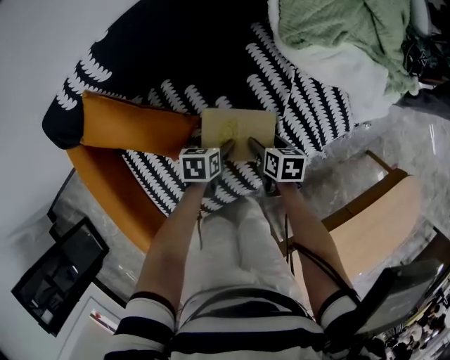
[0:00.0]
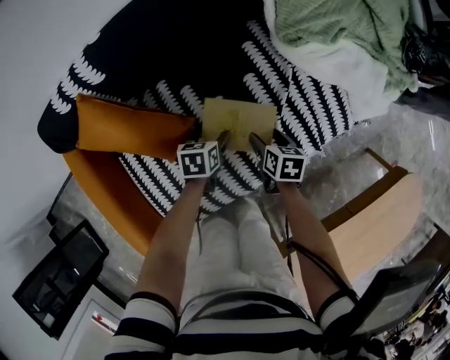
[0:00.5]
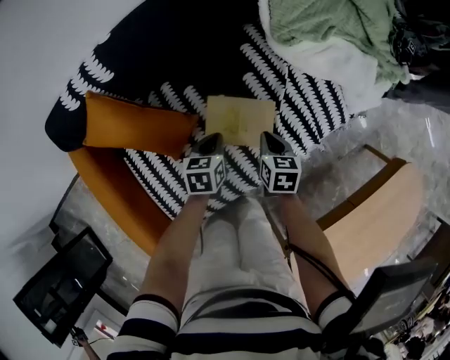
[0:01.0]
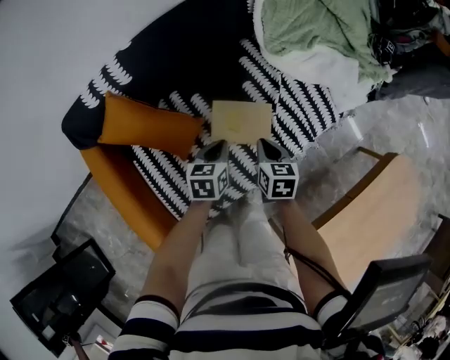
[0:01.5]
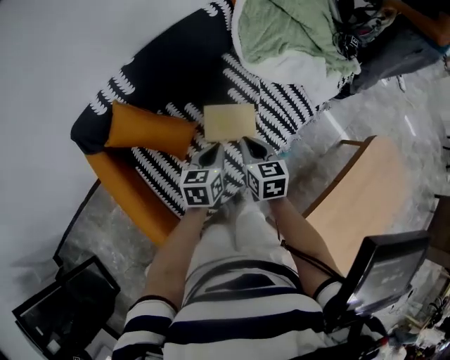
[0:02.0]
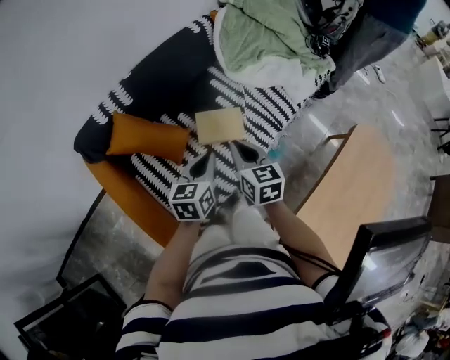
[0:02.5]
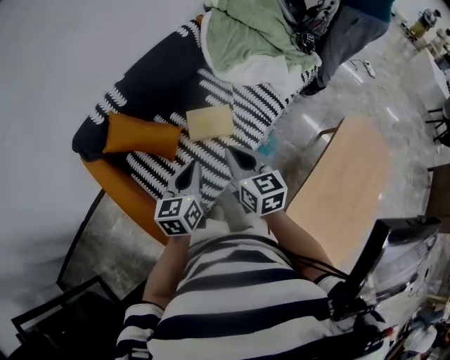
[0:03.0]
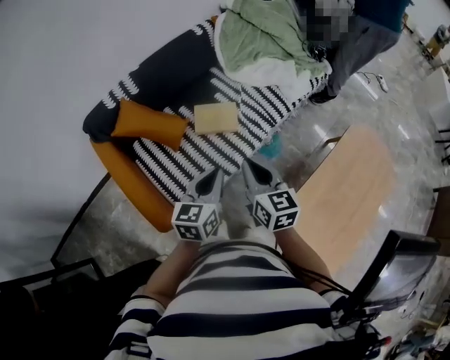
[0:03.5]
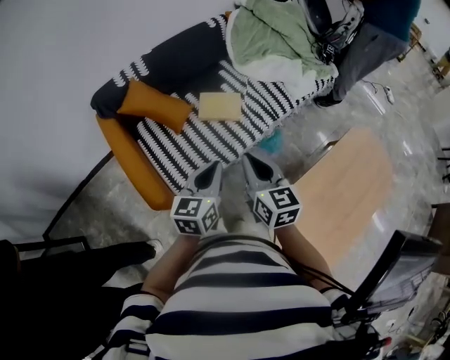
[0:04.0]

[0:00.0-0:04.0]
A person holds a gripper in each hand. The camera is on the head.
0:00.0 to 0:02.0: Both grippers travel together upward, about 20 cm. The right gripper turns by about 30 degrees, and closes its fingers; the left gripper turns by roughly 30 degrees, and closes up.
0:02.0 to 0:04.0: Both grippers travel together backward and upward, about 30 cm.

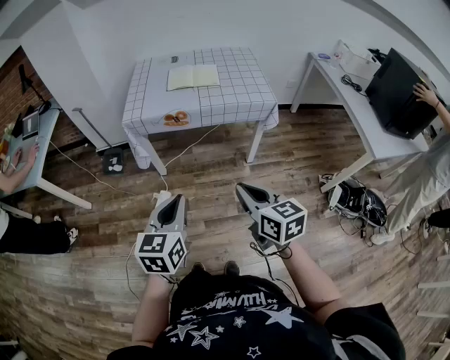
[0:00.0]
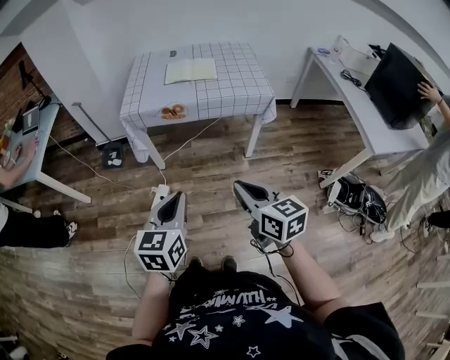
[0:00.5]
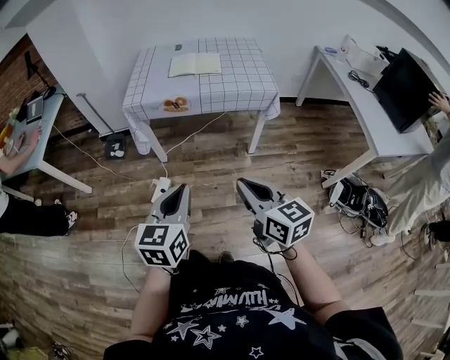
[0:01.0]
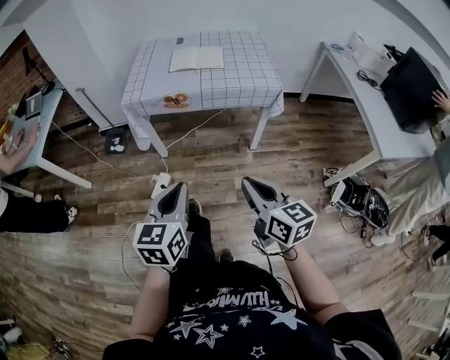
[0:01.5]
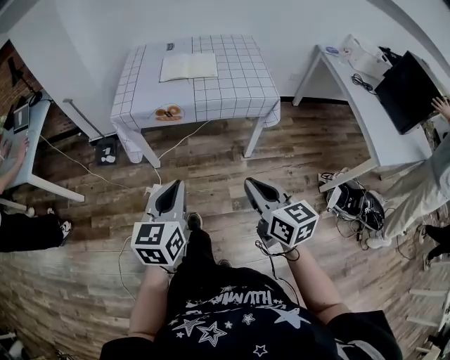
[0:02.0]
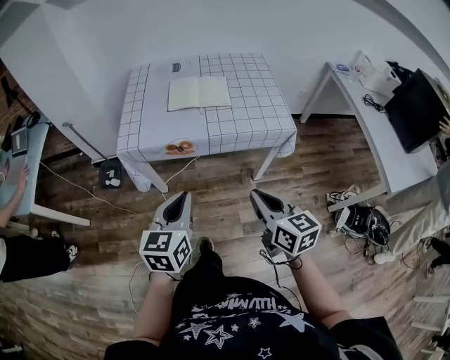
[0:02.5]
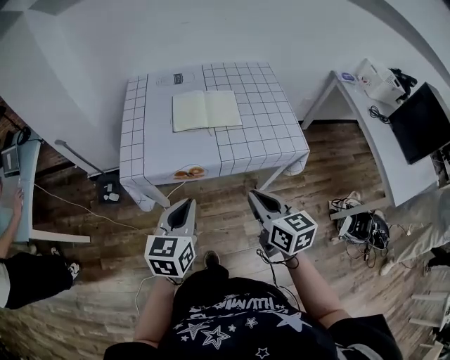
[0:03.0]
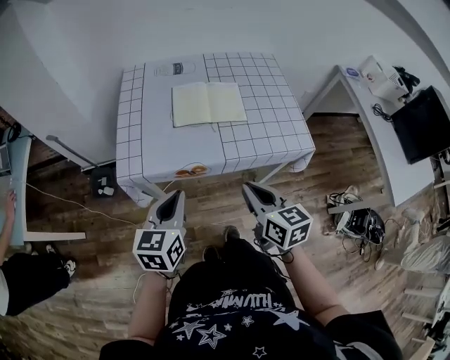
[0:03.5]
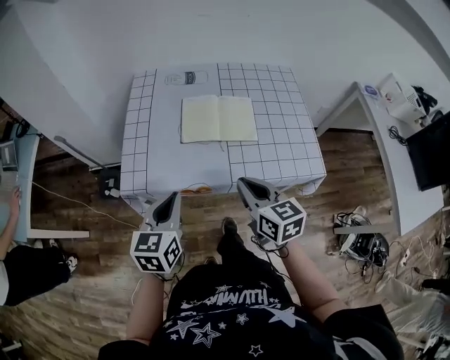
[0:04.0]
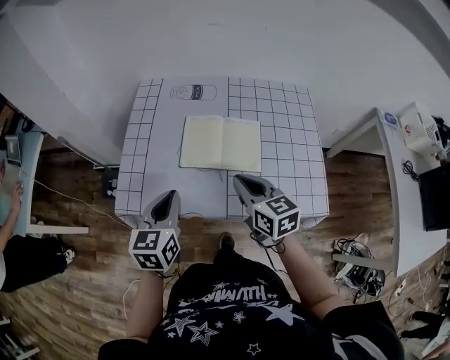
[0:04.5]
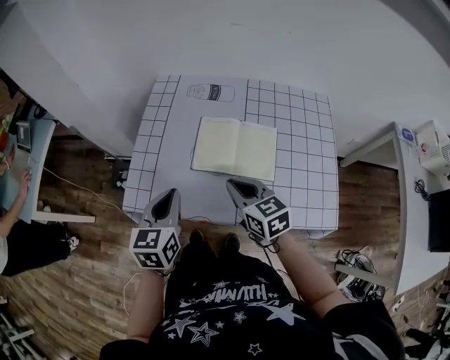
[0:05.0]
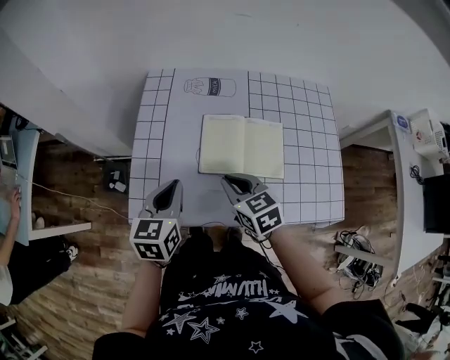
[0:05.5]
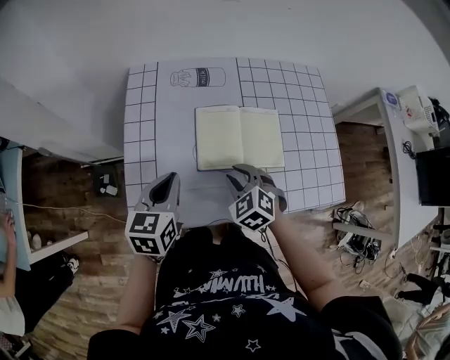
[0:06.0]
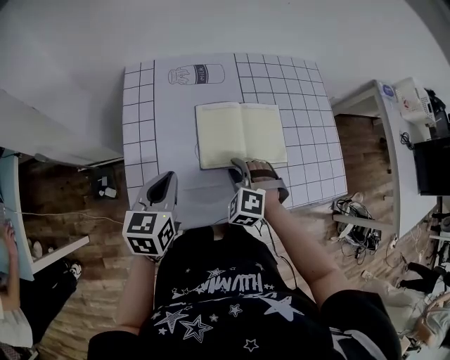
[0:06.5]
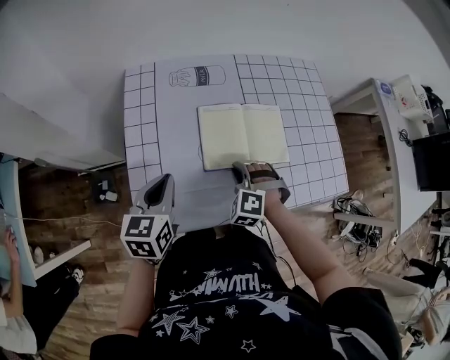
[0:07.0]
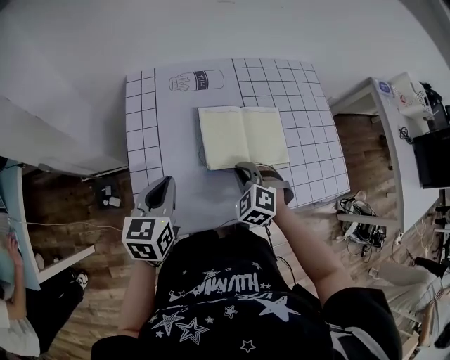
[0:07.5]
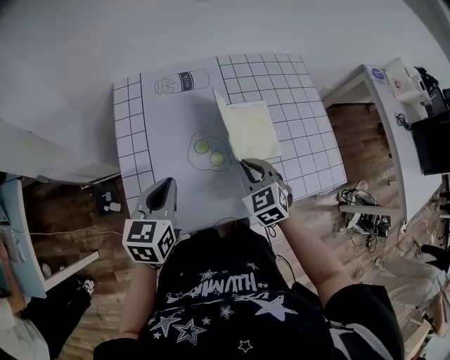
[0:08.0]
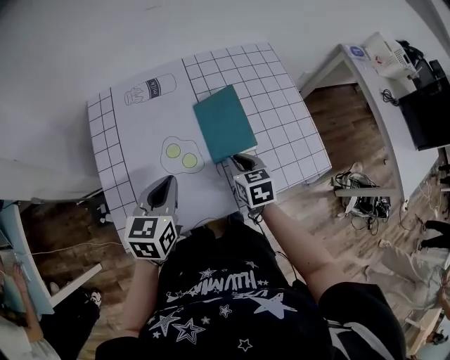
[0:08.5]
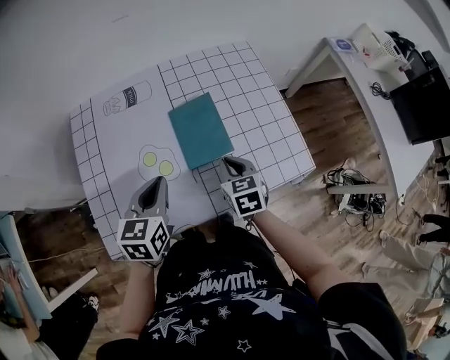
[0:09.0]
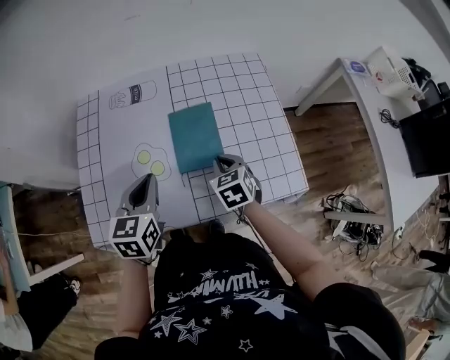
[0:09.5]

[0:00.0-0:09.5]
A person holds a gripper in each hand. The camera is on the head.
0:00.0 to 0:02.0: The left gripper travels forward by roughly 10 cm; the right gripper goes some 10 cm to the right and forward.
0:02.0 to 0:04.0: Both grippers travel together forward, roughly 40 cm.
0:04.0 to 0:05.5: The two grippers go about 20 cm forward. The right gripper changes its angle by roughly 20 degrees.
0:05.5 to 0:07.5: The left gripper moves roughly 5 cm; the right gripper heads downward, covering approximately 10 cm, rolls counterclockwise, seen from behind, by about 40 degrees, and opens, then closes once more.
0:07.5 to 0:09.5: The grippers both shift to the right by about 20 cm. The right gripper rolls clockwise, seen from behind, by approximately 40 degrees.

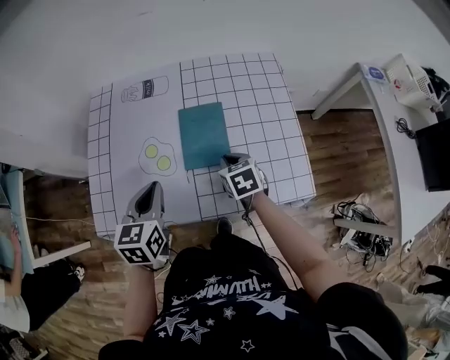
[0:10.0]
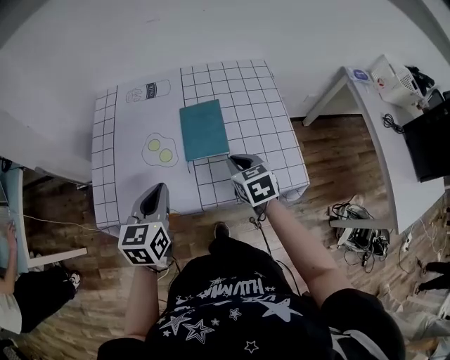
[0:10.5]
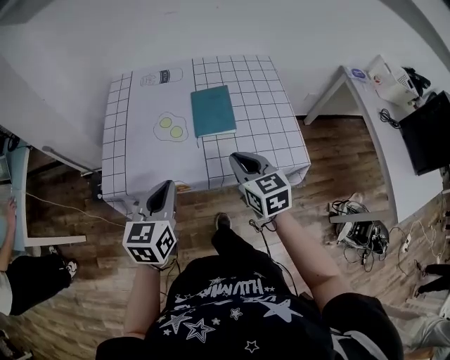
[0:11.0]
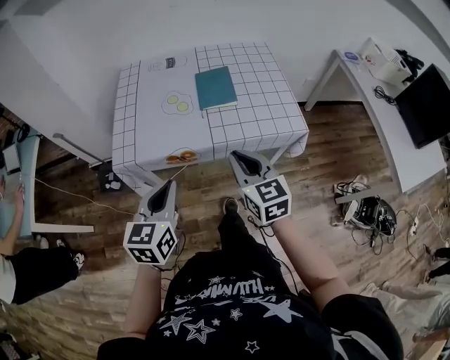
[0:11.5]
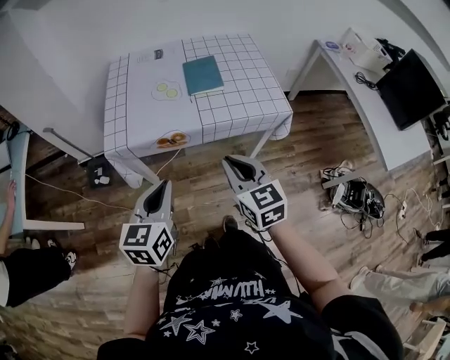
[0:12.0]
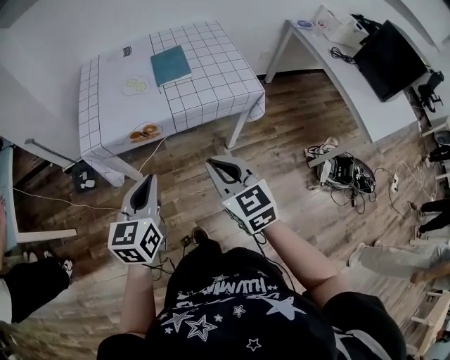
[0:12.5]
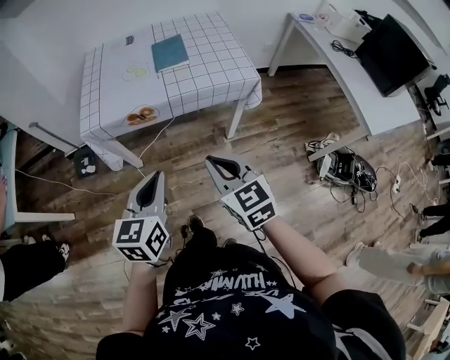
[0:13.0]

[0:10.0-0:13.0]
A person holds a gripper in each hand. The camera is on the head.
0:10.0 to 0:11.5: The right gripper travels backward and upward by some 35 cm, and tilts its fingers roughly 30 degrees upward; the left gripper travels backward by about 25 cm.
0:11.5 to 0:13.0: The right gripper shifts approximately 20 cm backward; the left gripper heads backward and to the right, covering approximately 20 cm.

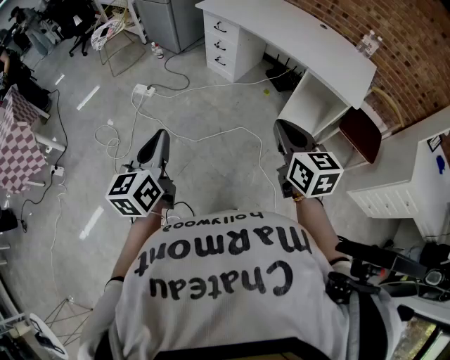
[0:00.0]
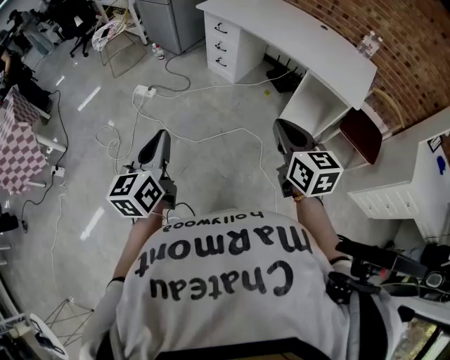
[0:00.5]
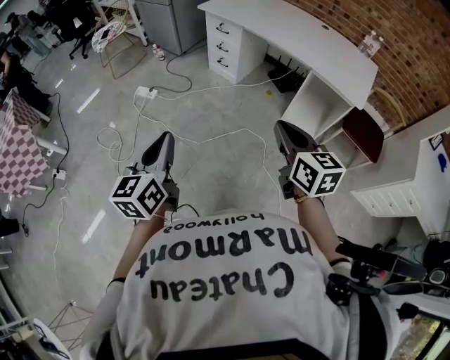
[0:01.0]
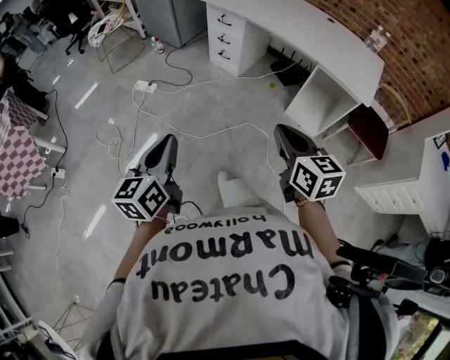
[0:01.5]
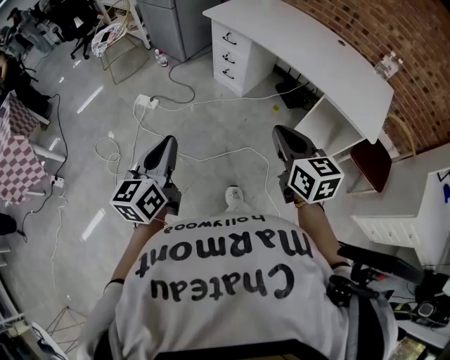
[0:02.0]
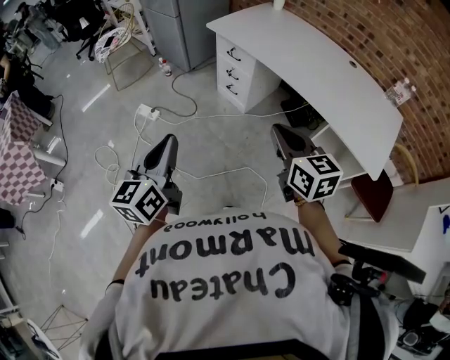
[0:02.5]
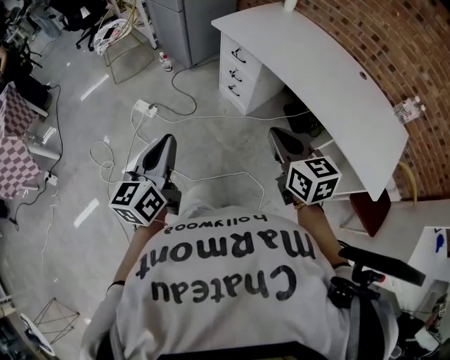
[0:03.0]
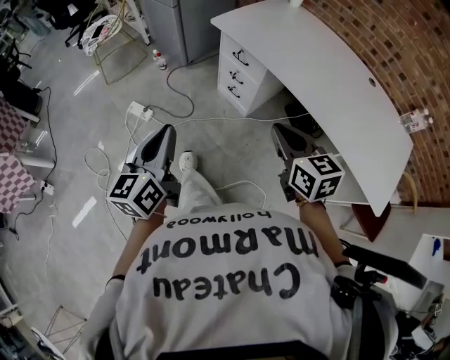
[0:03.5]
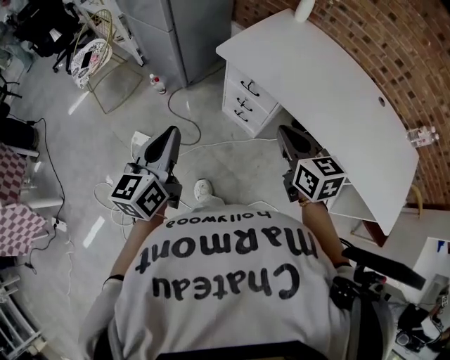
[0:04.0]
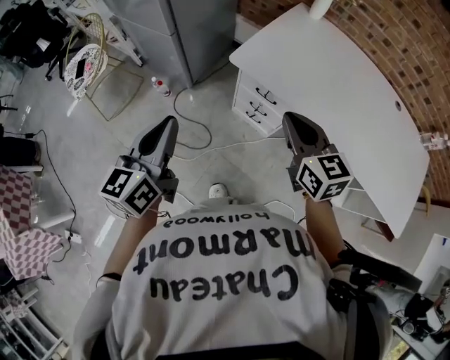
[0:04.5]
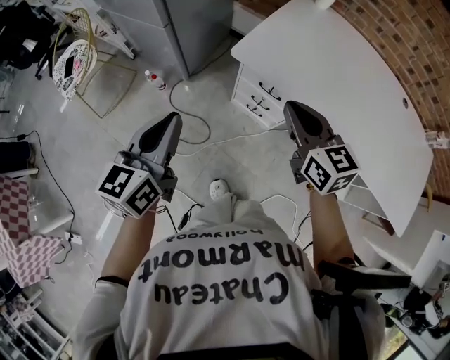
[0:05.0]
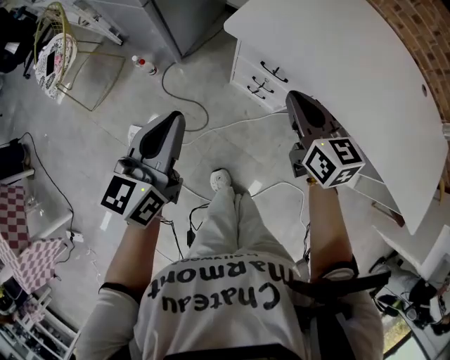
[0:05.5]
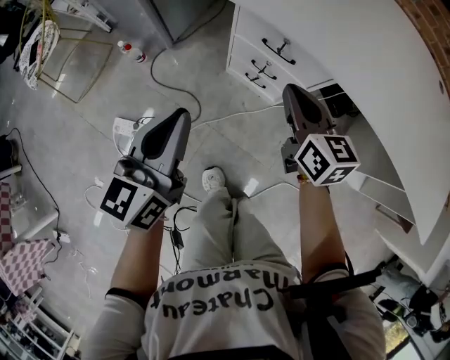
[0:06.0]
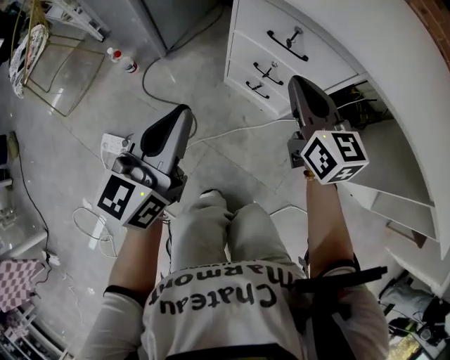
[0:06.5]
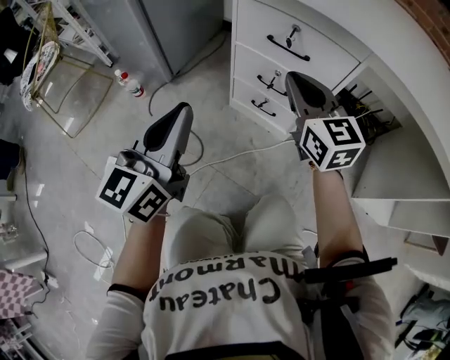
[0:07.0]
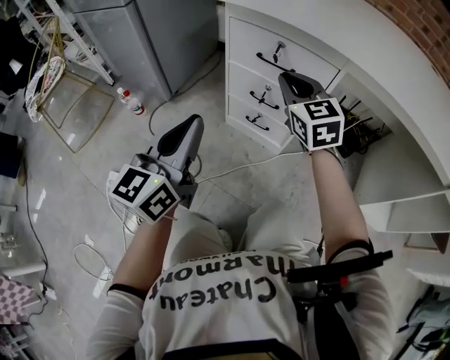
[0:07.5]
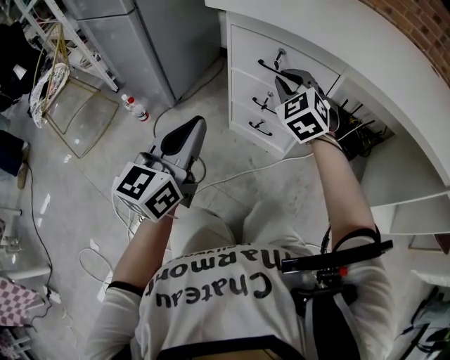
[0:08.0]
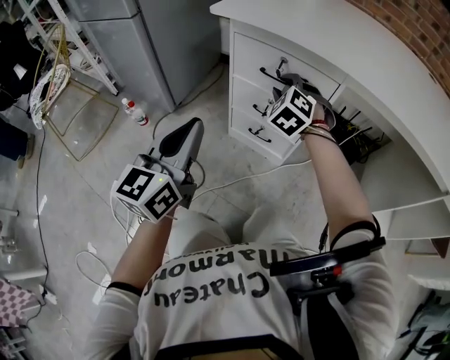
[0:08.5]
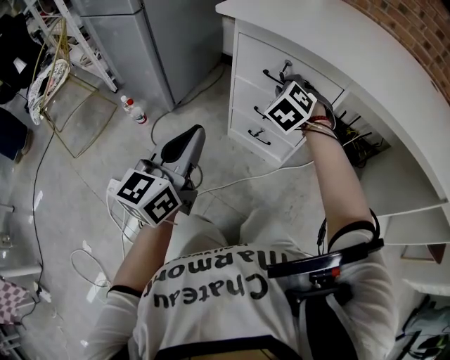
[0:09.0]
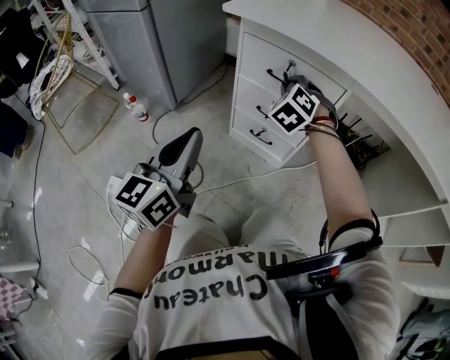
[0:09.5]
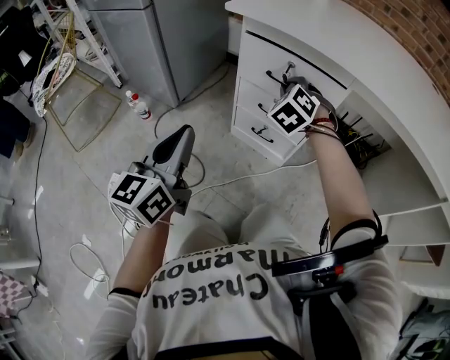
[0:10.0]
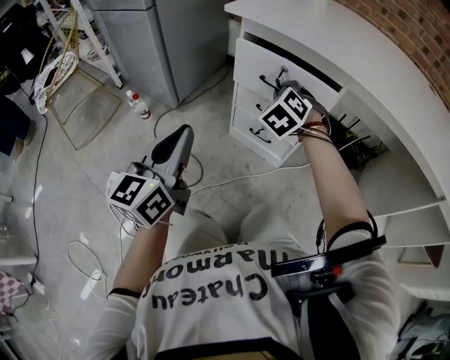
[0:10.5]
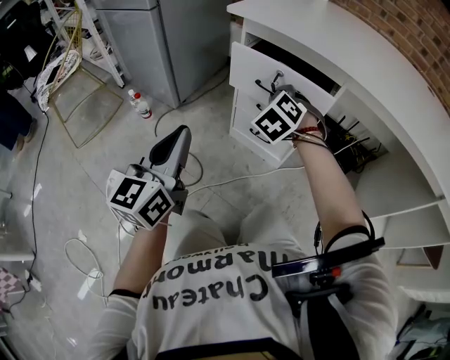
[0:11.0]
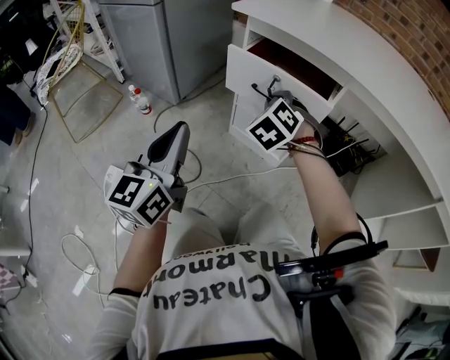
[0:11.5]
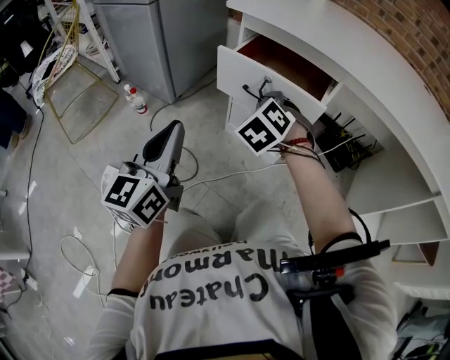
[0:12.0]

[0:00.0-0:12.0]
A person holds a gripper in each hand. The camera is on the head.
0:00.0 to 0:02.0: The two grippers go approximately 15 cm forward.
0:02.0 to 0:04.0: The two grippers travel together, forward, some 50 cm.
0:04.0 to 0:06.0: Both grippers travel together downward and forward, approximately 30 cm.
0:06.0 to 0:08.0: The right gripper is displaced downward and forward by about 15 cm, and rotates around the line of its fingers by about 60 degrees, counterclockwise from behind; the left gripper shifts some 15 cm downward.
0:08.0 to 0:10.0: The left gripper shifts by roughly 5 cm.
0:10.0 to 0:12.0: The right gripper is displaced backward by some 10 cm.
